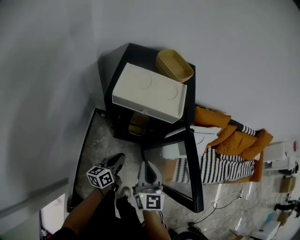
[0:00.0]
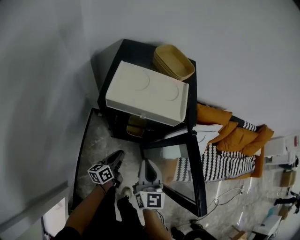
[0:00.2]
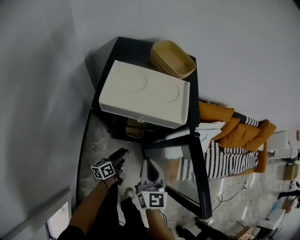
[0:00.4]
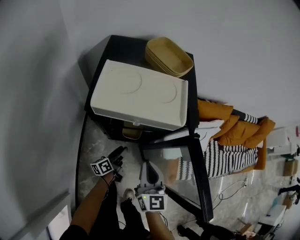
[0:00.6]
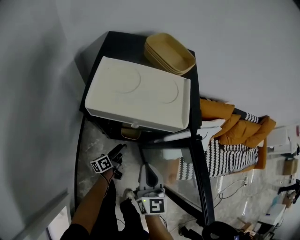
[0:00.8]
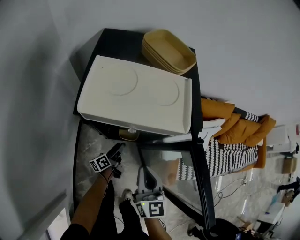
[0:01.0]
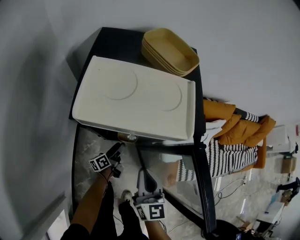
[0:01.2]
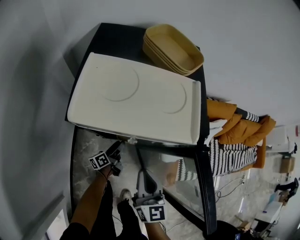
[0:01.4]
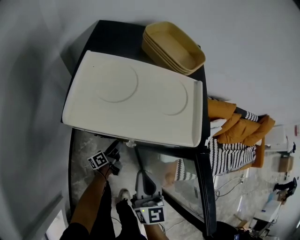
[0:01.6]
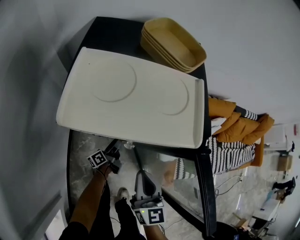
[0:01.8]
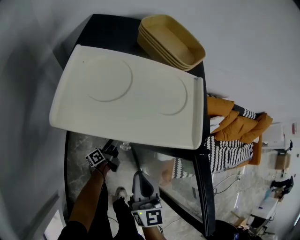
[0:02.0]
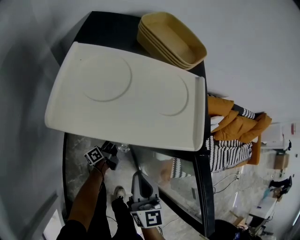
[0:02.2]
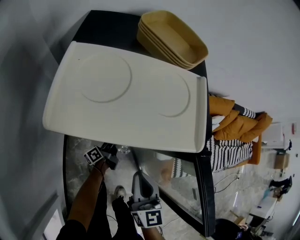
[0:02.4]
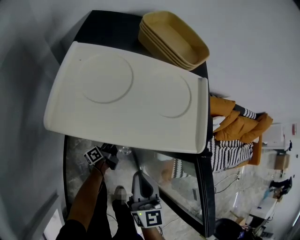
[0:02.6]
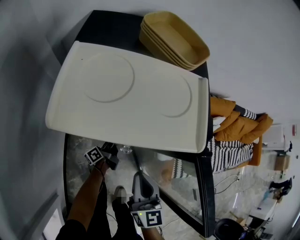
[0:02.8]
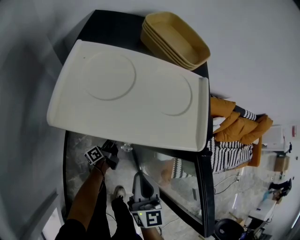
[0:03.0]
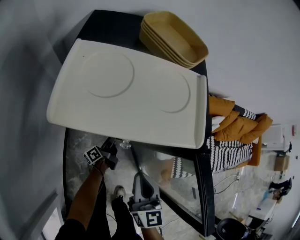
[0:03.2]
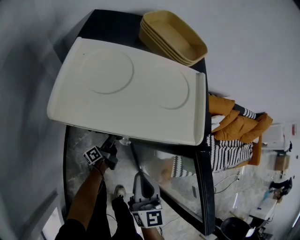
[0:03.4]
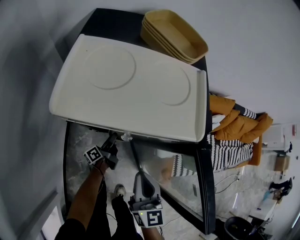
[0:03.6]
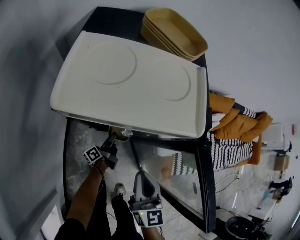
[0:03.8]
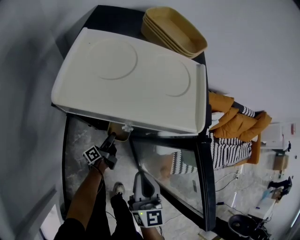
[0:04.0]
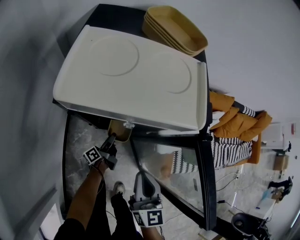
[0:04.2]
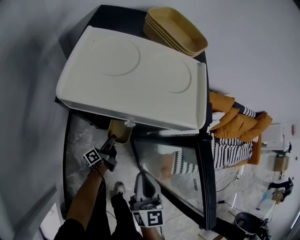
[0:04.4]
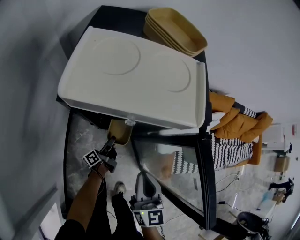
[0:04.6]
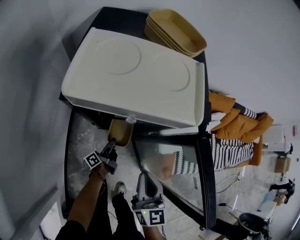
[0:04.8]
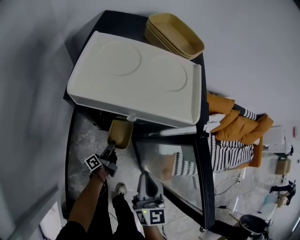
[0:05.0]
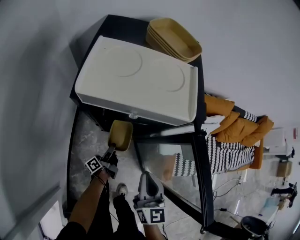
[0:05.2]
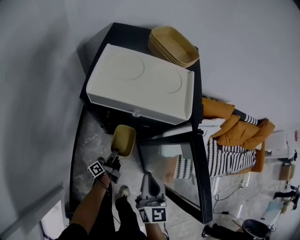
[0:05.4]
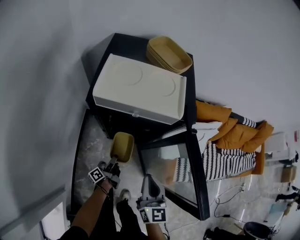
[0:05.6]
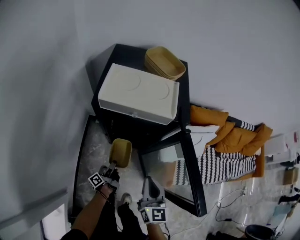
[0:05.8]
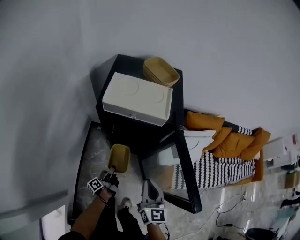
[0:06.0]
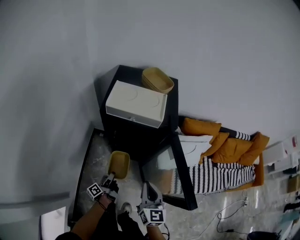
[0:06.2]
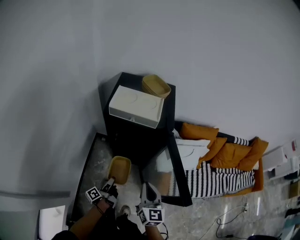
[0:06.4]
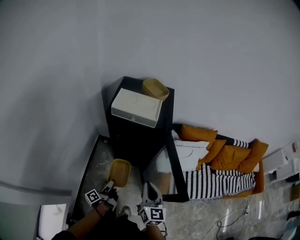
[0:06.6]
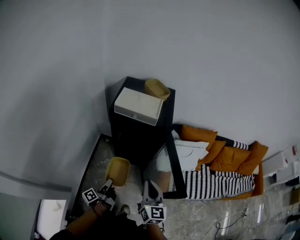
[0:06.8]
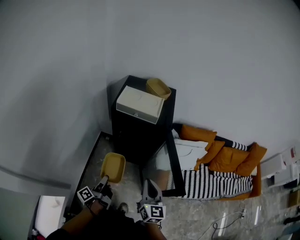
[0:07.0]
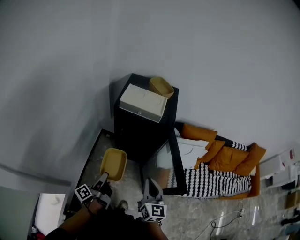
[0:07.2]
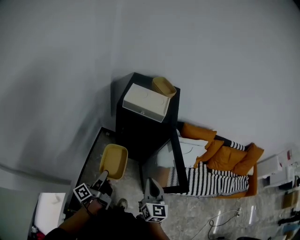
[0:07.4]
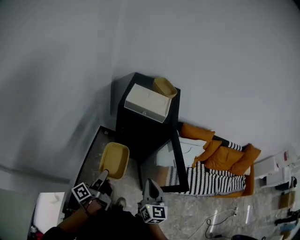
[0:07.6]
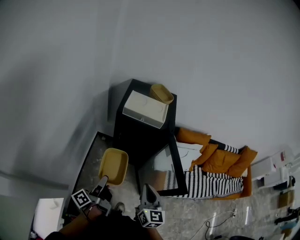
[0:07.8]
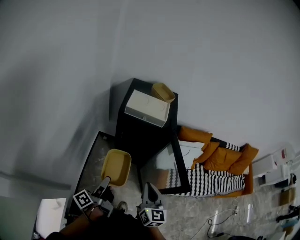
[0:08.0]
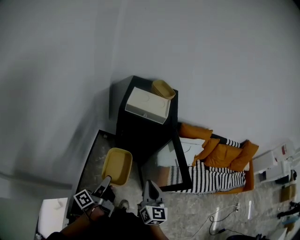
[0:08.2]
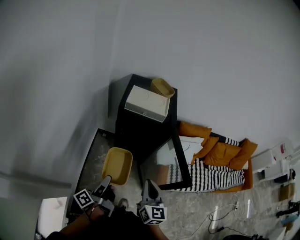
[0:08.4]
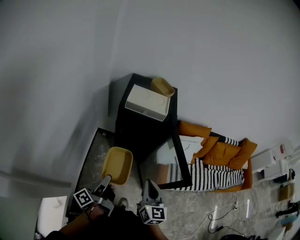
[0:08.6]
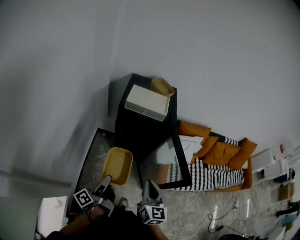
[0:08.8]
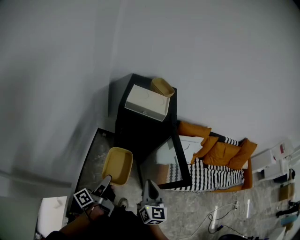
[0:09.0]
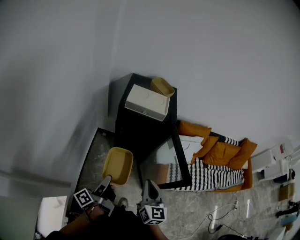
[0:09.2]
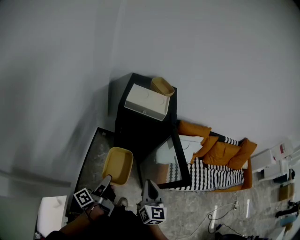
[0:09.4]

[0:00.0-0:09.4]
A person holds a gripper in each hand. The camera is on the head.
0:00.0 to 0:01.6: The right gripper goes roughly 10 cm downward.
0:04.8 to 0:06.2: The right gripper goes roughly 10 cm upward.
0:06.2 to 0:07.8: The right gripper moves roughly 15 cm.

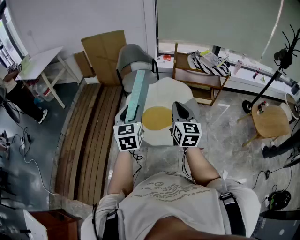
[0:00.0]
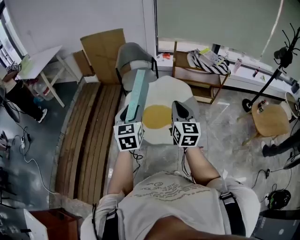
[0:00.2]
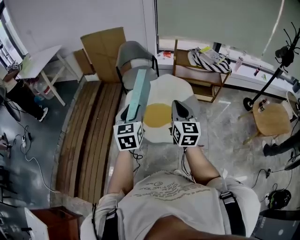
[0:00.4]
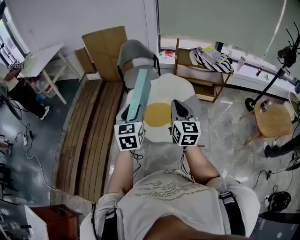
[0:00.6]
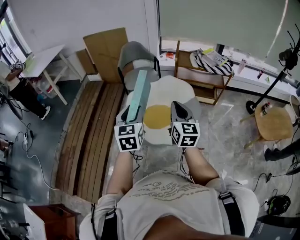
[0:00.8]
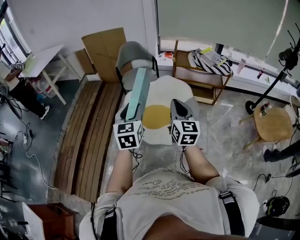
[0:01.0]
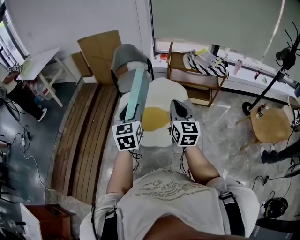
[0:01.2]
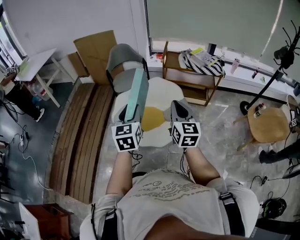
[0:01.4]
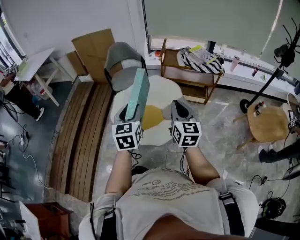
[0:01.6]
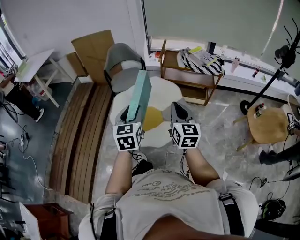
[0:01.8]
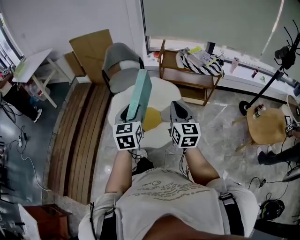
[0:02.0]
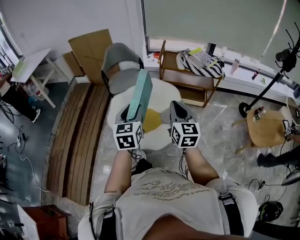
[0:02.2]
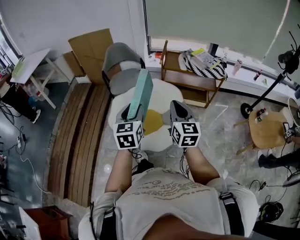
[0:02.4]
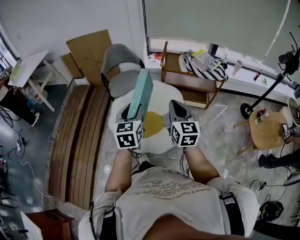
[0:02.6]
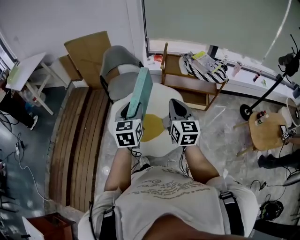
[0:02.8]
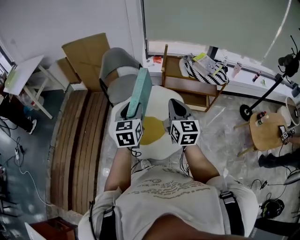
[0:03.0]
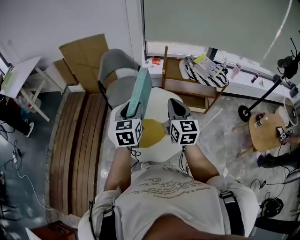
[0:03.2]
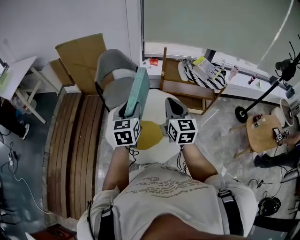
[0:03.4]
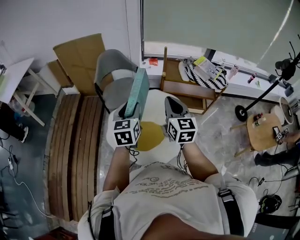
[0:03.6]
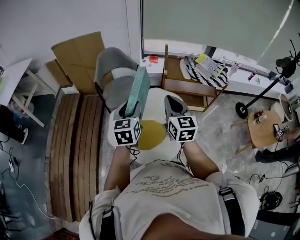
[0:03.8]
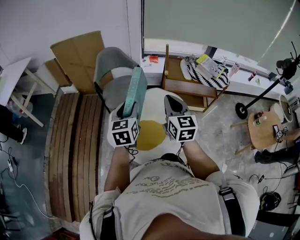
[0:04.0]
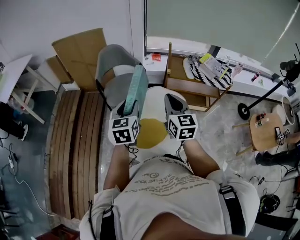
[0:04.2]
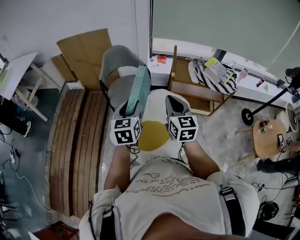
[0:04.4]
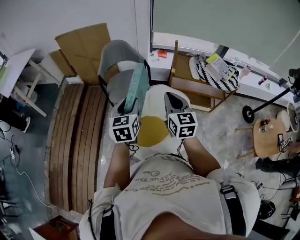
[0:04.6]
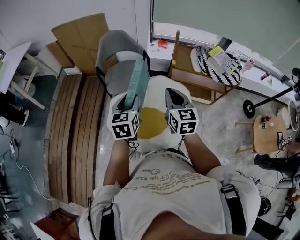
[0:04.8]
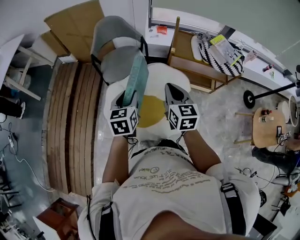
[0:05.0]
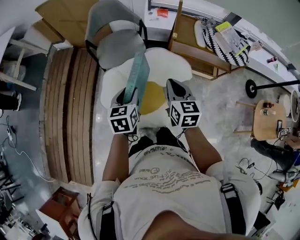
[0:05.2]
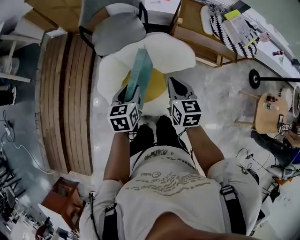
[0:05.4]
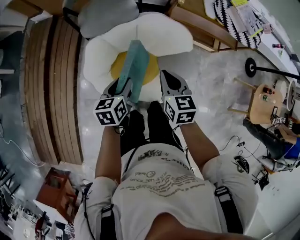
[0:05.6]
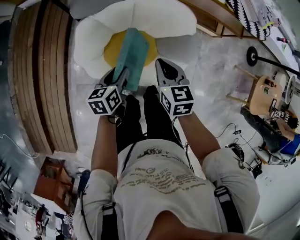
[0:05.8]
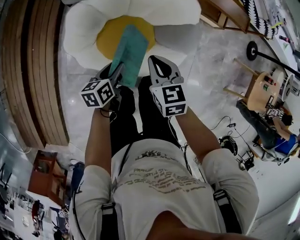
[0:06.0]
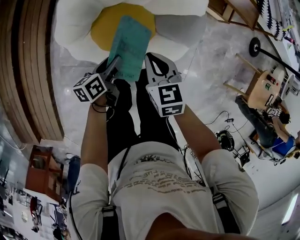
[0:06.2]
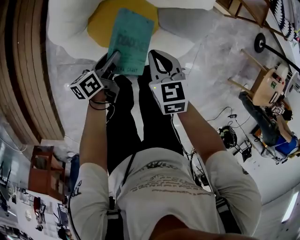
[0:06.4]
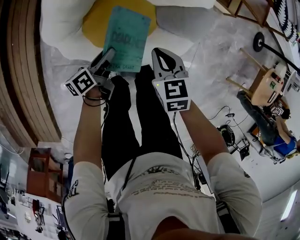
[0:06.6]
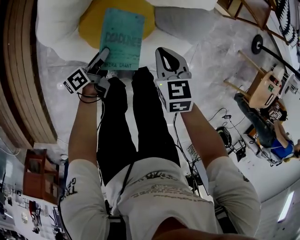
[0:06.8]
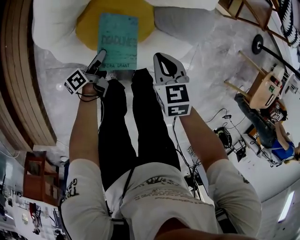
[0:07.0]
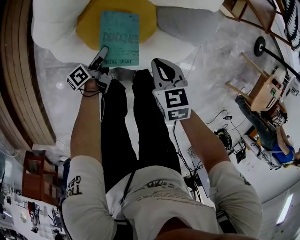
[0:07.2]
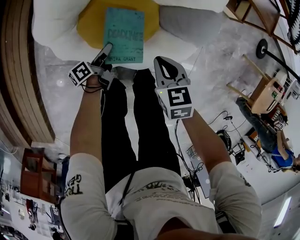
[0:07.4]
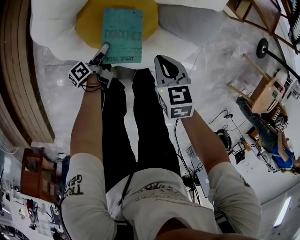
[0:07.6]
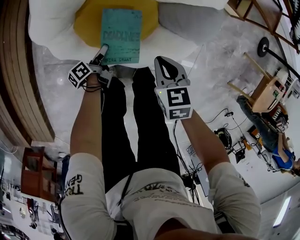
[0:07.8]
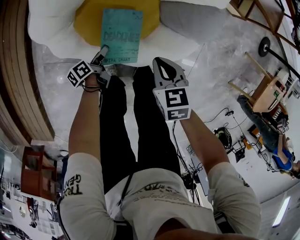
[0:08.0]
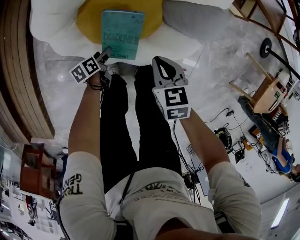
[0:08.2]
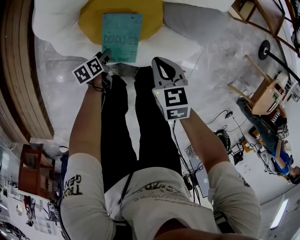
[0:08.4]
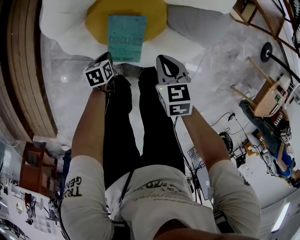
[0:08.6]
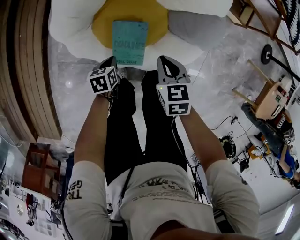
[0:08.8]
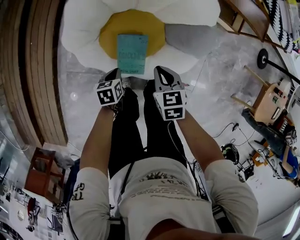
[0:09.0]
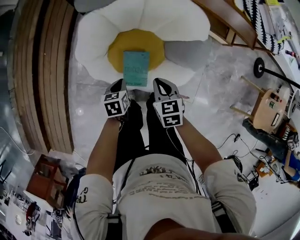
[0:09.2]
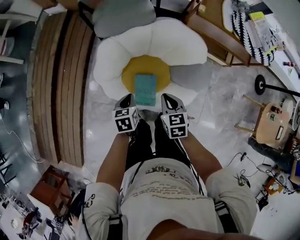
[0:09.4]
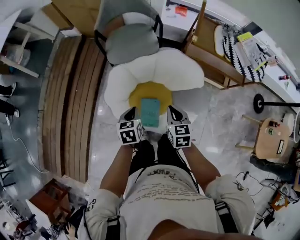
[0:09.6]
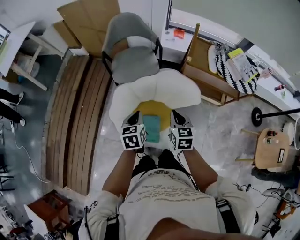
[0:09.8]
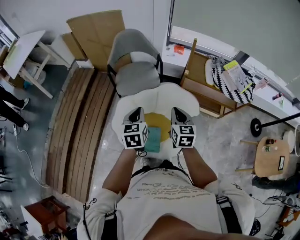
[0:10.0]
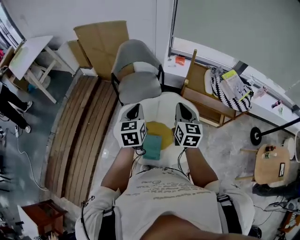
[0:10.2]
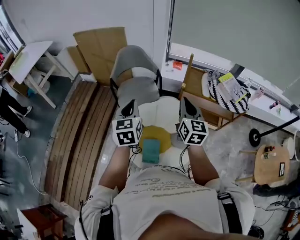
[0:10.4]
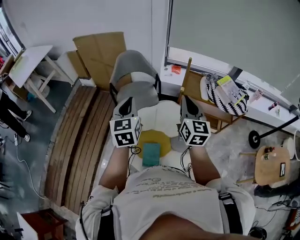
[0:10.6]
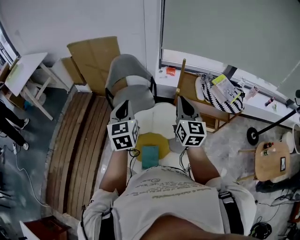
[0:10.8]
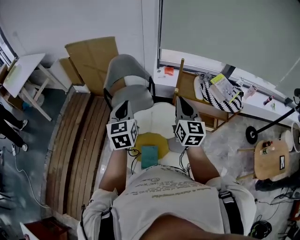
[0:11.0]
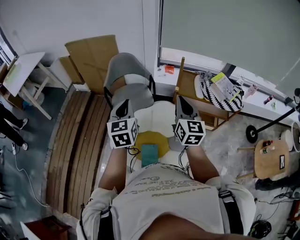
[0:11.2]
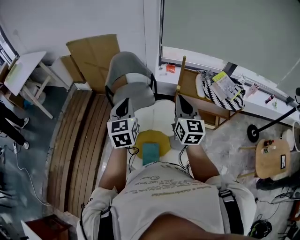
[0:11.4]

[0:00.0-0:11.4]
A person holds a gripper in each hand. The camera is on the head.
0:00.0 to 0:01.4: The grippers both shift to the right by approximately 15 cm.
0:01.4 to 0:02.8: The two grippers go about 15 cm forward.
0:02.8 to 0:04.2: The two grippers go some 20 cm forward and to the left.
0:04.2 to 0:05.6: The grippers both shift downward by roughly 25 cm. The right gripper turns by approximately 30 degrees. Meanwhile the left gripper turns by approximately 30 degrees.
0:05.6 to 0:07.2: Both grippers travel together downward, some 35 cm. The left gripper rotates around the line of its fingers by roughly 50 degrees, counterclockwise from behind; the right gripper changes its angle by about 30 degrees.
0:07.2 to 0:08.6: The left gripper travels backward by about 5 cm, points its fingers roughly 40 degrees further downward, and closes.
0:08.6 to 0:10.0: Both grippers travel together upward, about 50 cm. The left gripper tilts its fingers about 30 degrees upward. The right gripper points its fingers roughly 40 degrees further upward.
0:10.0 to 0:11.4: The two grippers go about 15 cm upward. The right gripper turns by approximately 20 degrees.

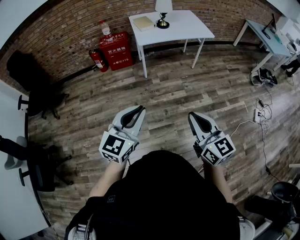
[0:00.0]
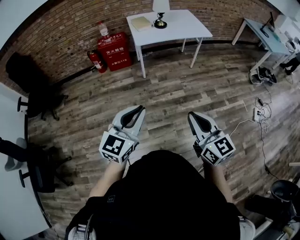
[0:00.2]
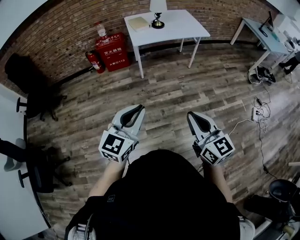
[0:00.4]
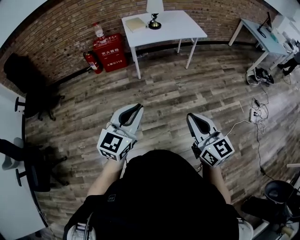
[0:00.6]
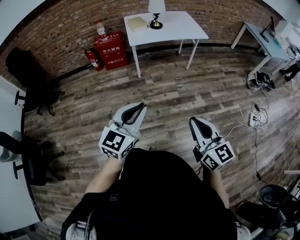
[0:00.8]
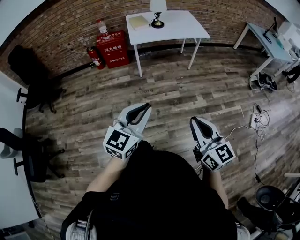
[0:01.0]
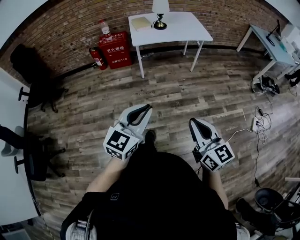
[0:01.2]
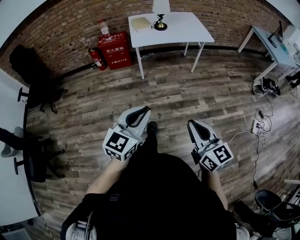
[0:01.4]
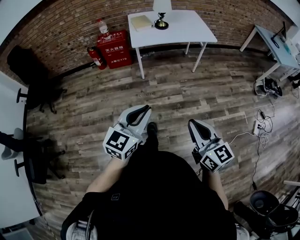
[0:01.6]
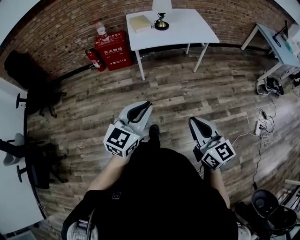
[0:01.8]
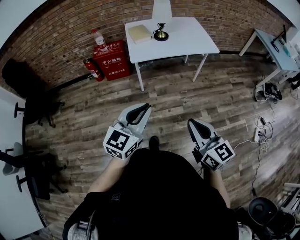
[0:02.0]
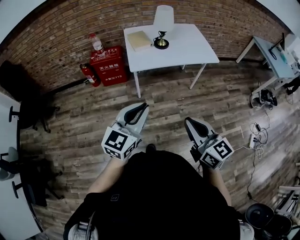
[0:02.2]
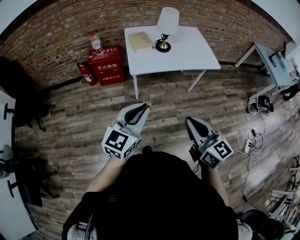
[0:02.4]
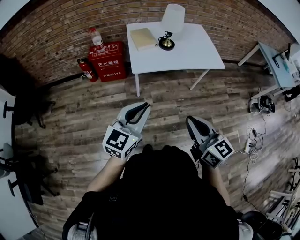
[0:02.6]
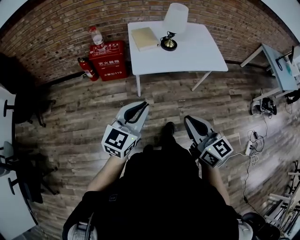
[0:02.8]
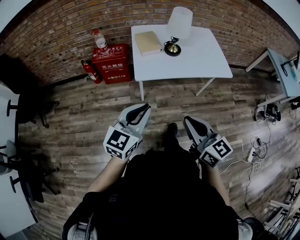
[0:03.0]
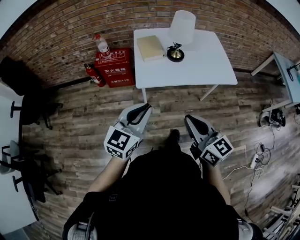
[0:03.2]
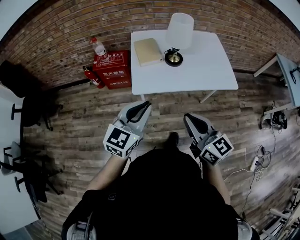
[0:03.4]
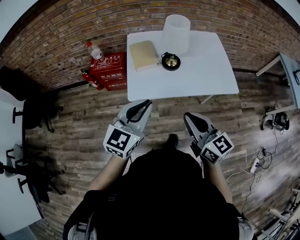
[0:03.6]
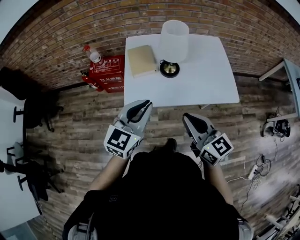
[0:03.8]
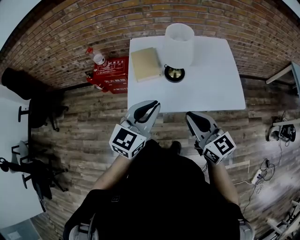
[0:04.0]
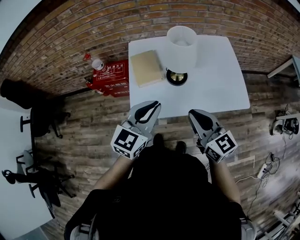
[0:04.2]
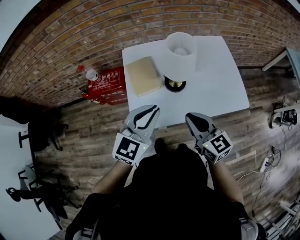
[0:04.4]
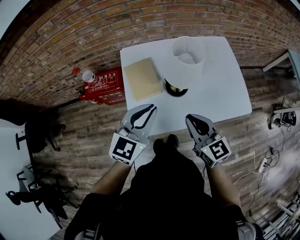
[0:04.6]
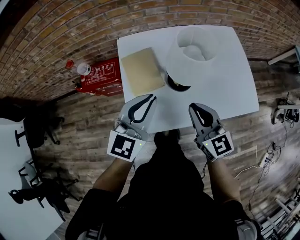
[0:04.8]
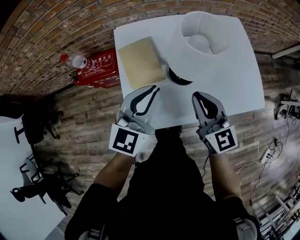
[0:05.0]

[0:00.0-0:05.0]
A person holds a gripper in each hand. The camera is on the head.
0:00.0 to 0:01.6: The grippers both shift to the right and forward by some 15 cm.
0:01.6 to 0:03.4: The pair of grippers is taken forward, roughly 50 cm.
0:03.4 to 0:05.0: Both grippers move forward, about 35 cm.
